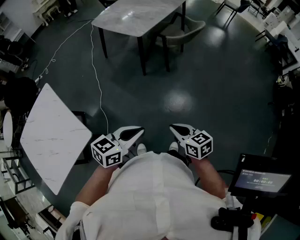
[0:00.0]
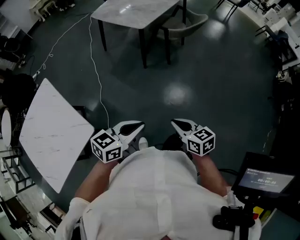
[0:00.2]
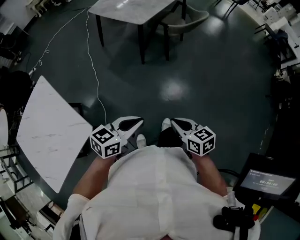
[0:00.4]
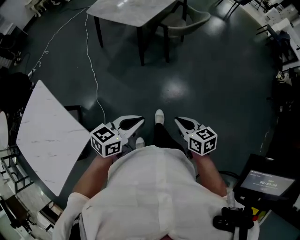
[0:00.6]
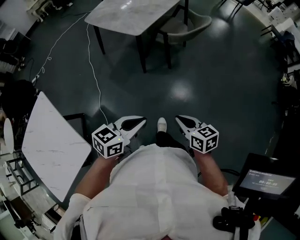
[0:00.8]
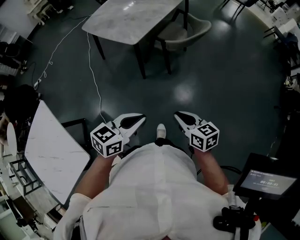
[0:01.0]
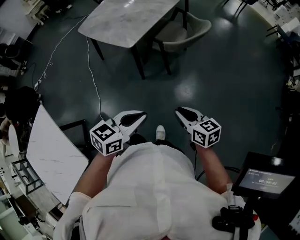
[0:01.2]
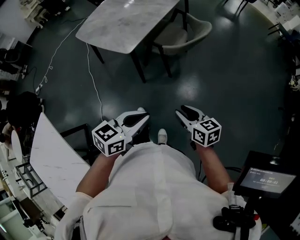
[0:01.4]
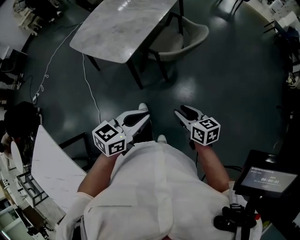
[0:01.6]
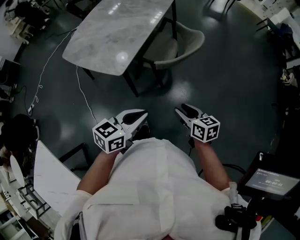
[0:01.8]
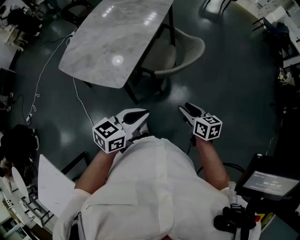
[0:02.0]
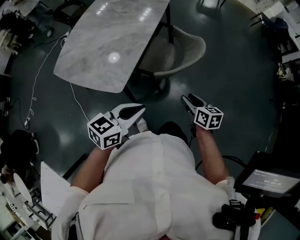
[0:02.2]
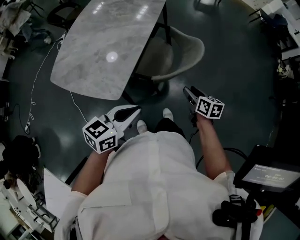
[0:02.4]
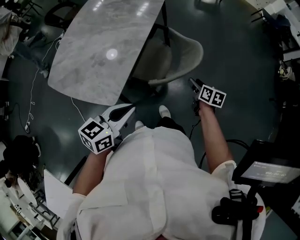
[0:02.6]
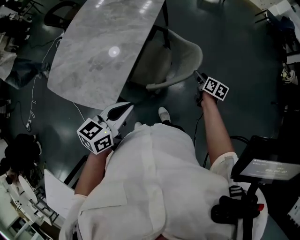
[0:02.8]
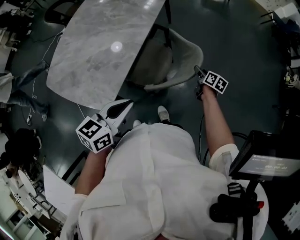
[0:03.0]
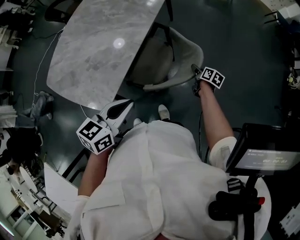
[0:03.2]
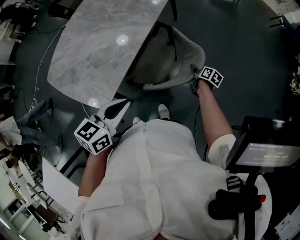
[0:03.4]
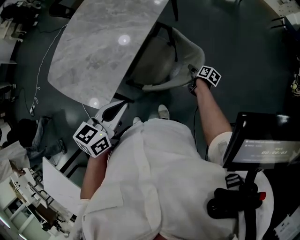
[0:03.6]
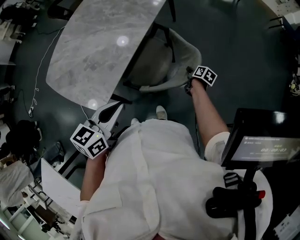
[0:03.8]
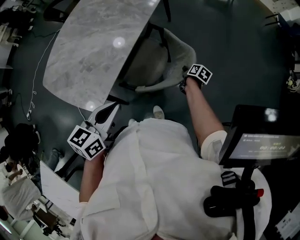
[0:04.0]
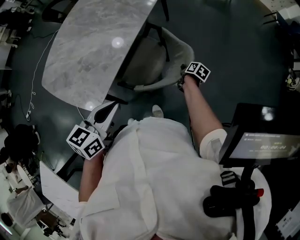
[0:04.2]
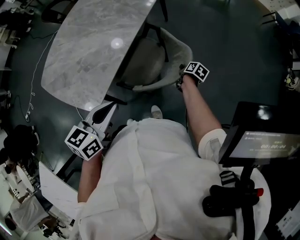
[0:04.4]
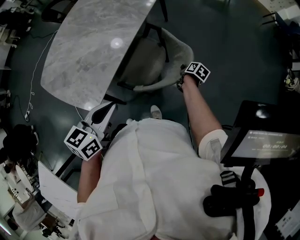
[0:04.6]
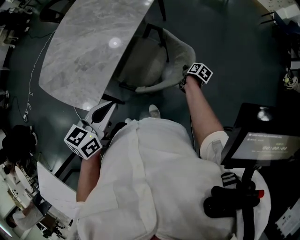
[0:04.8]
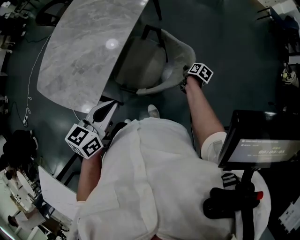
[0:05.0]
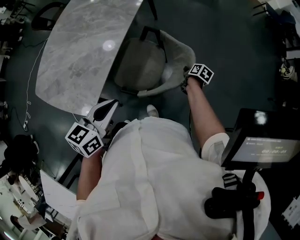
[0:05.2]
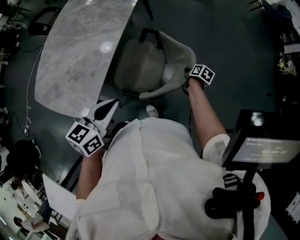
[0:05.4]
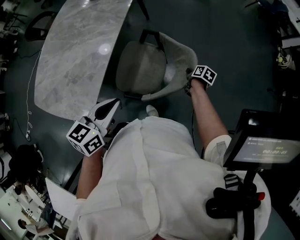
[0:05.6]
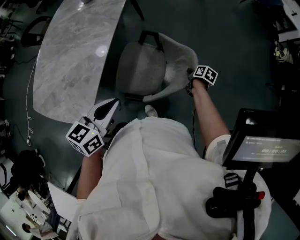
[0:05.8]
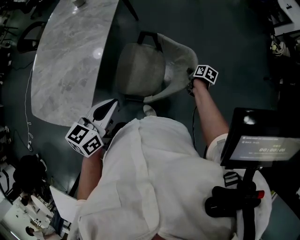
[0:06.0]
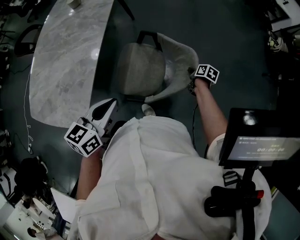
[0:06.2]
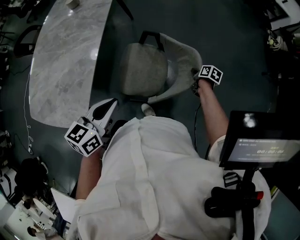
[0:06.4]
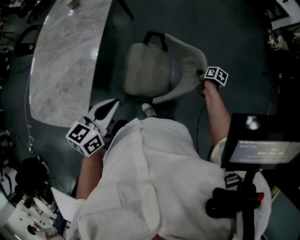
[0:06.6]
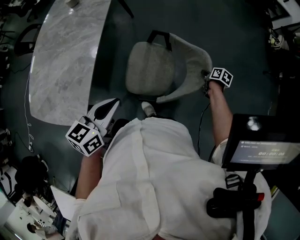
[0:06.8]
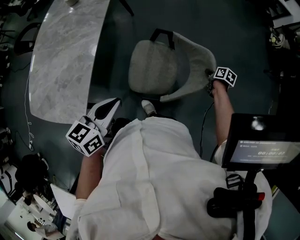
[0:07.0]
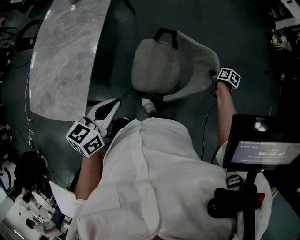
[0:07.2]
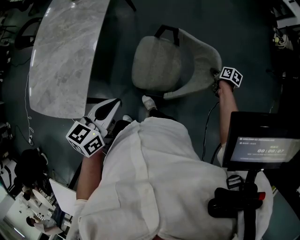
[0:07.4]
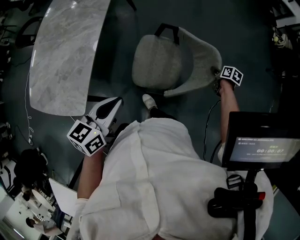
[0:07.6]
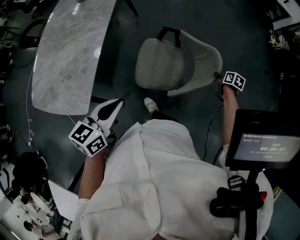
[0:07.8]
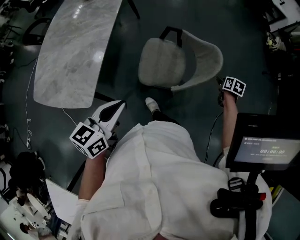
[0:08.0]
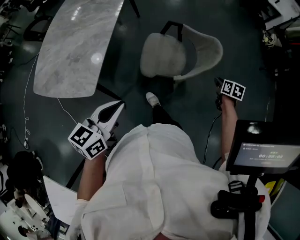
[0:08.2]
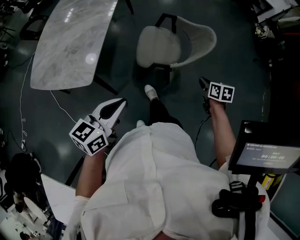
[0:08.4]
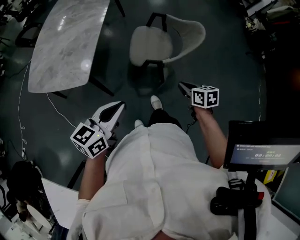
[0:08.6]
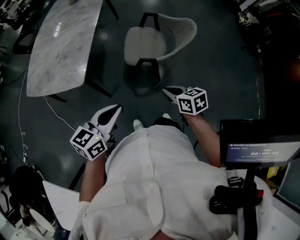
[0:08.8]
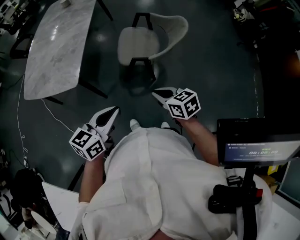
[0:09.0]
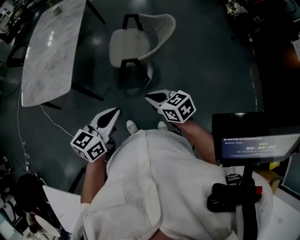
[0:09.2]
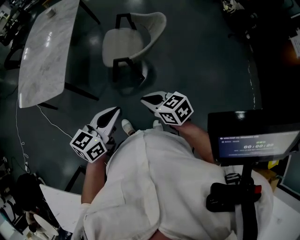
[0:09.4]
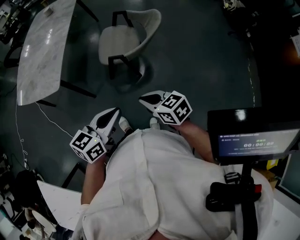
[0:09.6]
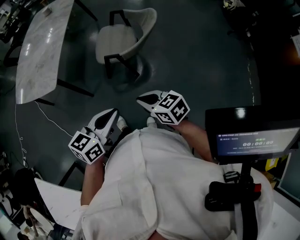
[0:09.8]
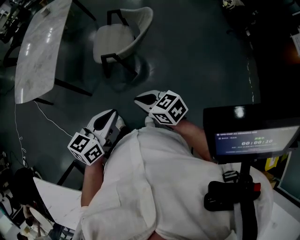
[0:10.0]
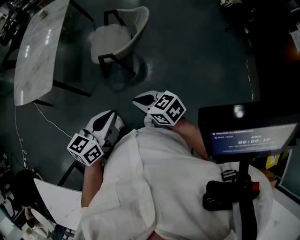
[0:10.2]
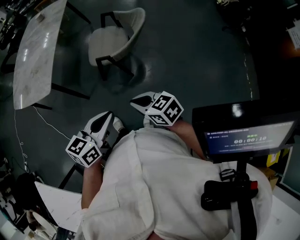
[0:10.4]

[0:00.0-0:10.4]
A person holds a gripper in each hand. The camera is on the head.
0:00.0 to 0:01.4: Both grippers move forward, some 35 cm. The right gripper opens its fingers.
0:01.4 to 0:03.0: Both grippers are carried forward, approximately 50 cm. The right gripper changes its angle by roughly 50 degrees, and opens up.
0:03.0 to 0:04.4: The right gripper travels downward by roughly 5 cm, and closes its fingers.
0:04.4 to 0:06.0: The right gripper is displaced to the right by approximately 20 cm. Meanwhile the left gripper is displaced to the right by approximately 10 cm.
0:06.0 to 0:07.4: The left gripper heads to the right, covering some 5 cm. The right gripper shifts roughly 15 cm to the right.
0:07.4 to 0:09.0: The left gripper heads backward, covering approximately 35 cm. The right gripper is displaced backward, to the left and upward by about 70 cm, rolls counterclockwise, seen from behind, by about 40 degrees, and opens, then closes once more.
0:09.0 to 0:10.4: Both grippers travel together to the right and backward, approximately 20 cm.
